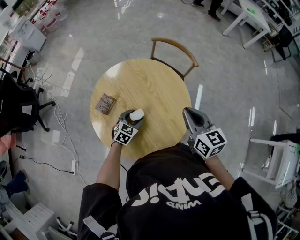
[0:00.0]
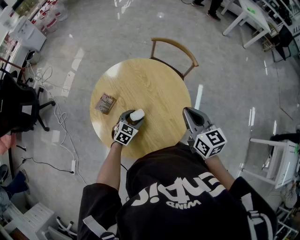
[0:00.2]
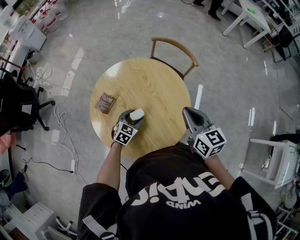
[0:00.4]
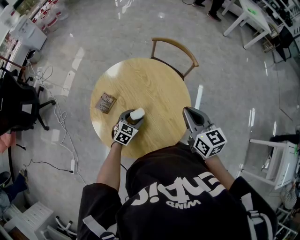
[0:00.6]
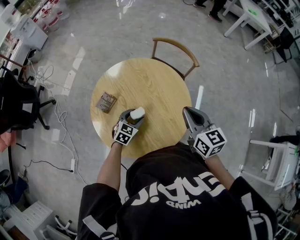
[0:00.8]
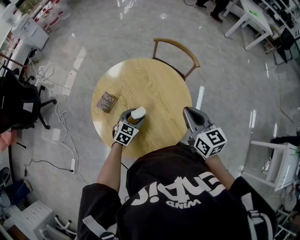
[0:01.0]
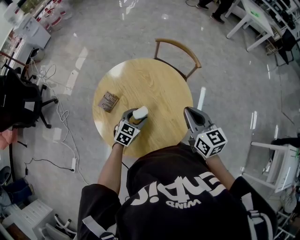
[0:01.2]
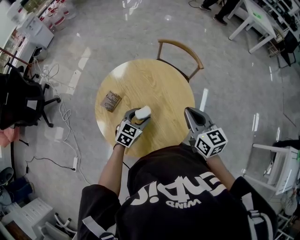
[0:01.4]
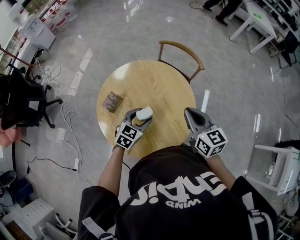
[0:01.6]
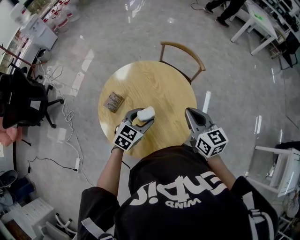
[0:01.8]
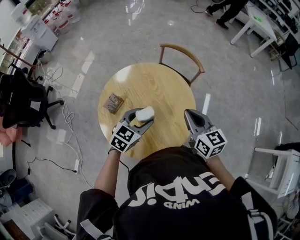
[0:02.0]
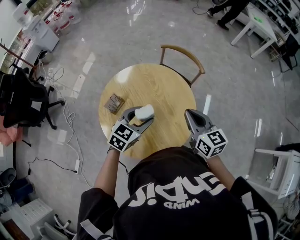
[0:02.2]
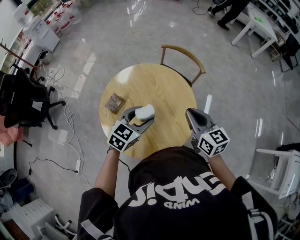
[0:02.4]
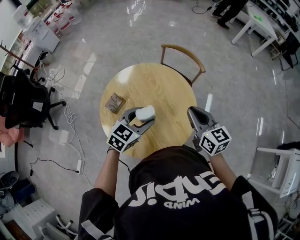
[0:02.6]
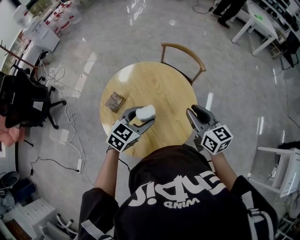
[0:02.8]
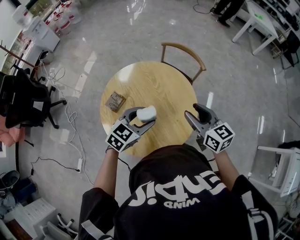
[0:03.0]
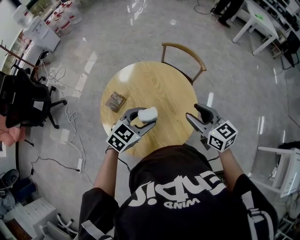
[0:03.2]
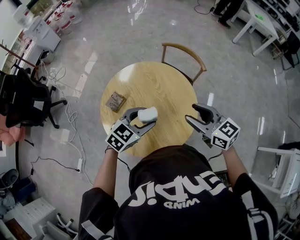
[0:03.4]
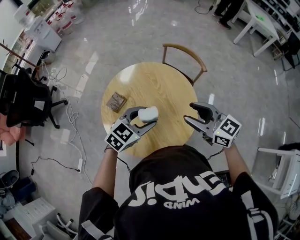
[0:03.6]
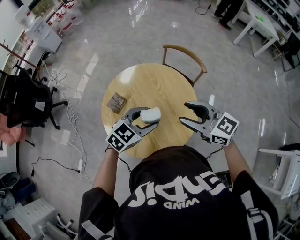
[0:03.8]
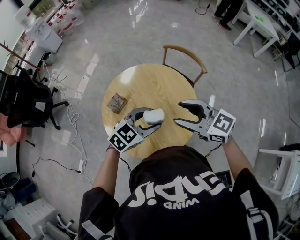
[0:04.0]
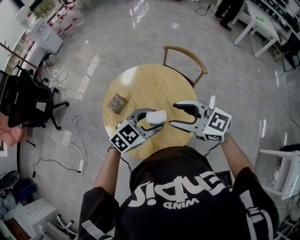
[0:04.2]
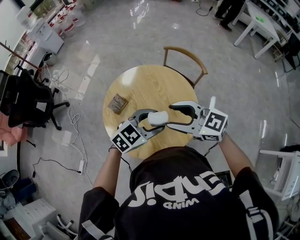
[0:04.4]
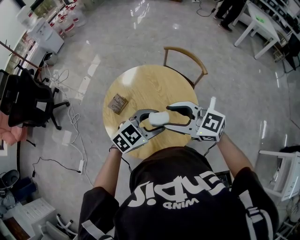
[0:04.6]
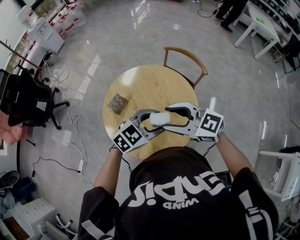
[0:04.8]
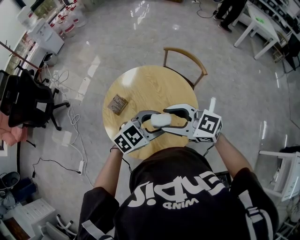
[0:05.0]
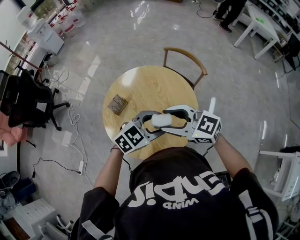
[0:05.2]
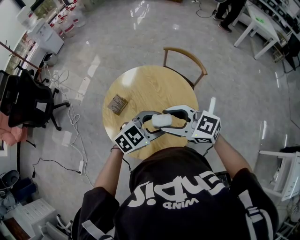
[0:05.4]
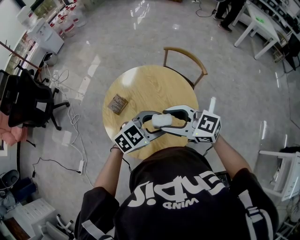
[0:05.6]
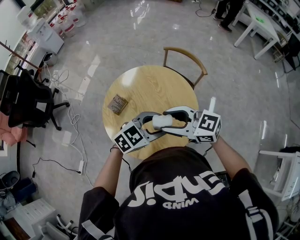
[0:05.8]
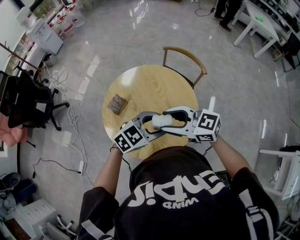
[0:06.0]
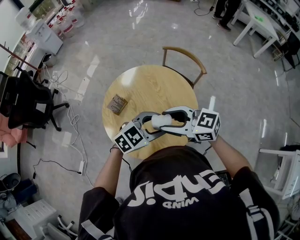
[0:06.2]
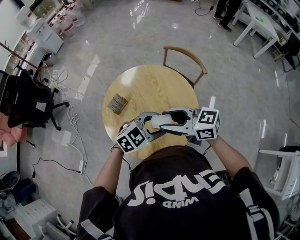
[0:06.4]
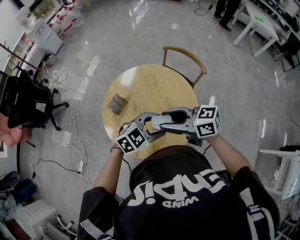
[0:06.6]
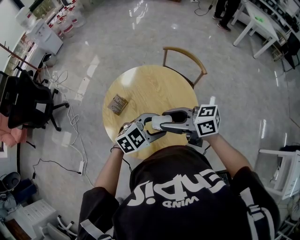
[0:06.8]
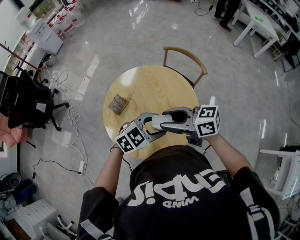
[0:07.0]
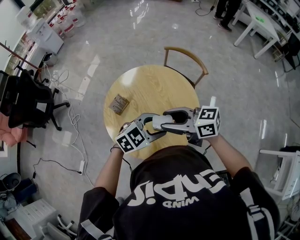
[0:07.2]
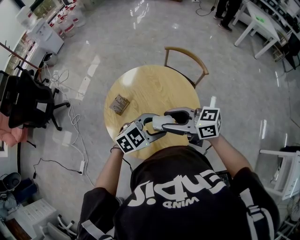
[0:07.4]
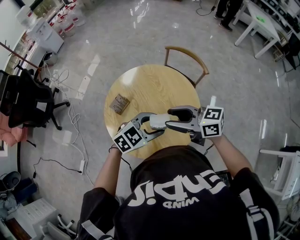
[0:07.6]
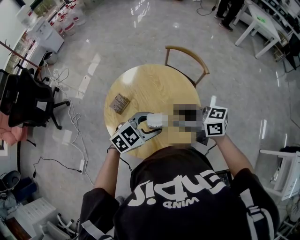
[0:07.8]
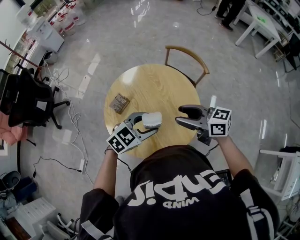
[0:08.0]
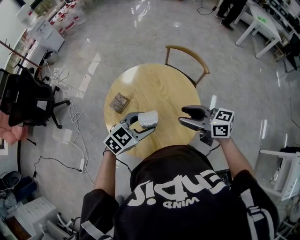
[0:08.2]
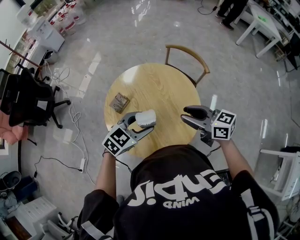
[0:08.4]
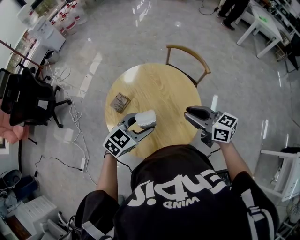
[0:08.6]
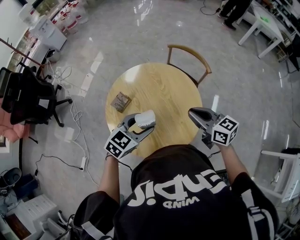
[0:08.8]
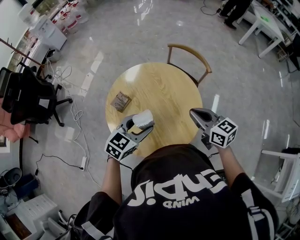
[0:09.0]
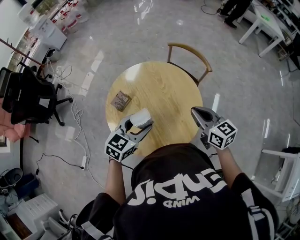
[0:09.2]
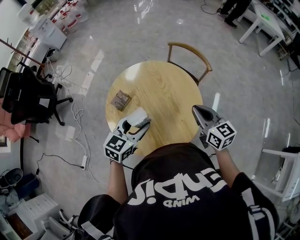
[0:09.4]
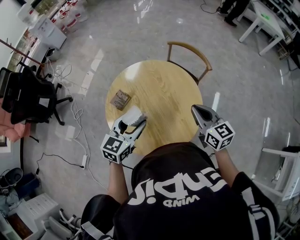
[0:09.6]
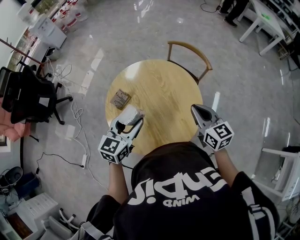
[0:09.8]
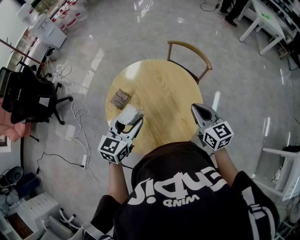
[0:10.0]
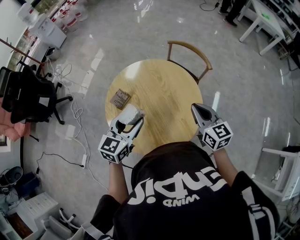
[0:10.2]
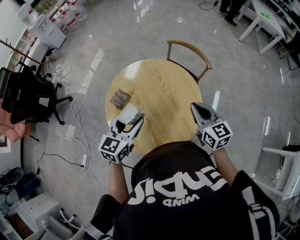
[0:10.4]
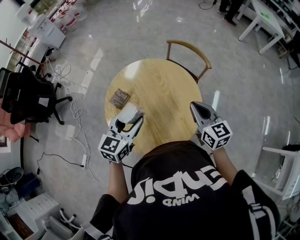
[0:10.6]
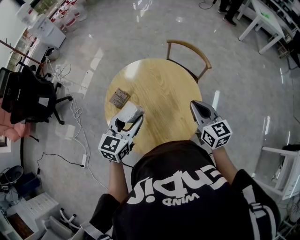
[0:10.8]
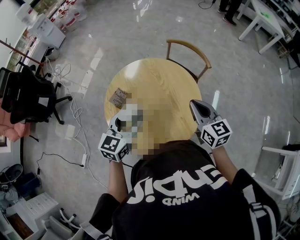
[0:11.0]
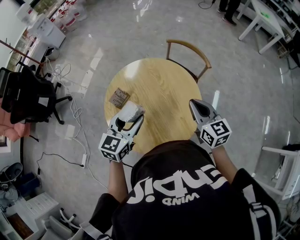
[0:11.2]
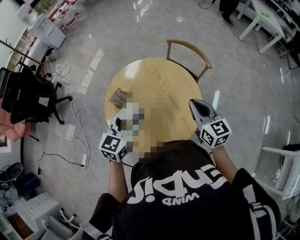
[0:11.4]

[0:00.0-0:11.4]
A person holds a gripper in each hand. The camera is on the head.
0:00.0 to 0:01.4: The left gripper heads upward, covering roughly 10 cm.
0:01.4 to 0:02.8: The left gripper heads upward, covering approximately 15 cm.
0:02.8 to 0:04.2: The left gripper moves about 5 cm, while the right gripper moves some 10 cm, turns by some 40 degrees, and opens.
0:04.2 to 0:05.6: The grippers move only a little.
0:05.6 to 0:07.2: The right gripper rotates roughly 20 degrees.
0:07.2 to 0:08.6: The right gripper shifts by approximately 10 cm, swivels approximately 20 degrees, and closes its fingers. Meanwhile the left gripper changes place by roughly 5 cm.
0:08.6 to 0:10.0: The left gripper is displaced to the left by about 5 cm, and swivels roughly 30 degrees, while the right gripper rotates about 30 degrees, and closes up.
0:10.0 to 0:11.4: The grippers stay close to where they were, moving slightly.

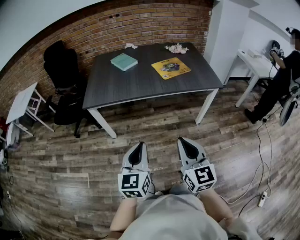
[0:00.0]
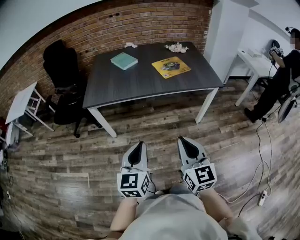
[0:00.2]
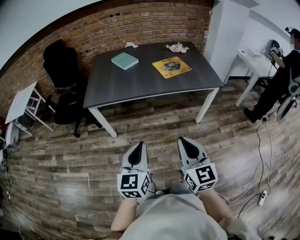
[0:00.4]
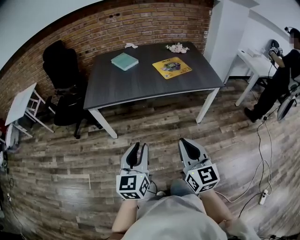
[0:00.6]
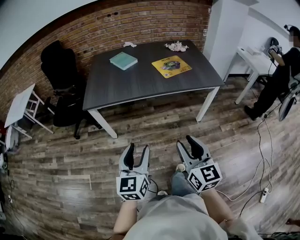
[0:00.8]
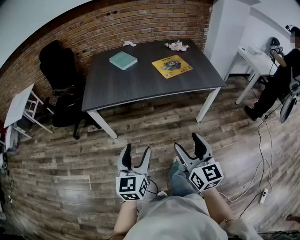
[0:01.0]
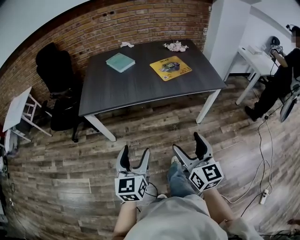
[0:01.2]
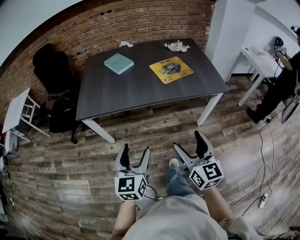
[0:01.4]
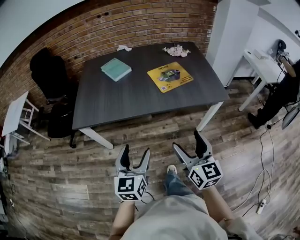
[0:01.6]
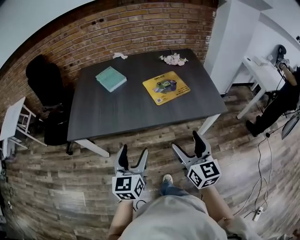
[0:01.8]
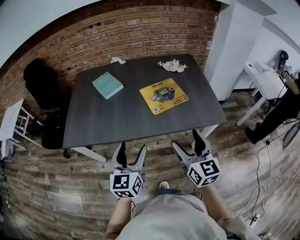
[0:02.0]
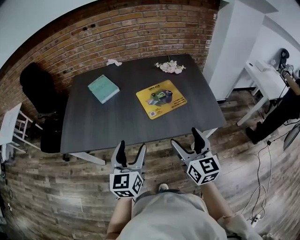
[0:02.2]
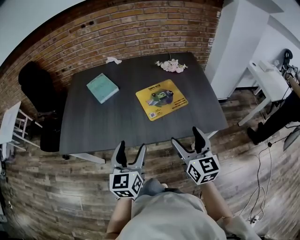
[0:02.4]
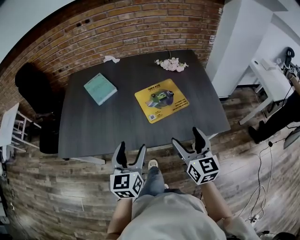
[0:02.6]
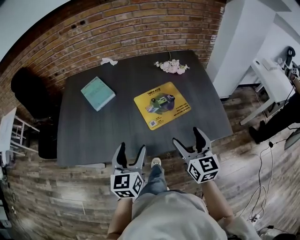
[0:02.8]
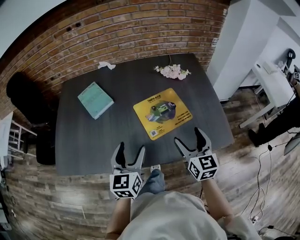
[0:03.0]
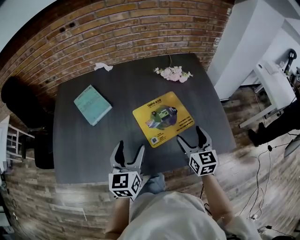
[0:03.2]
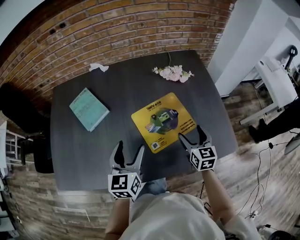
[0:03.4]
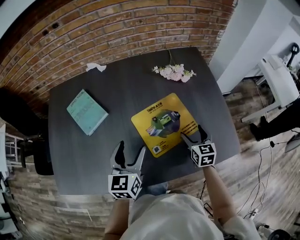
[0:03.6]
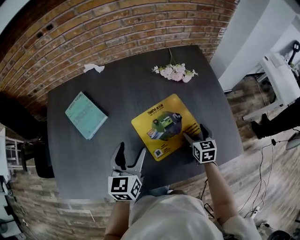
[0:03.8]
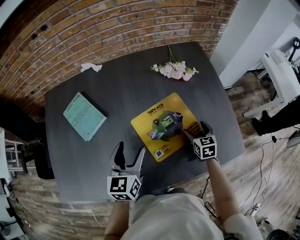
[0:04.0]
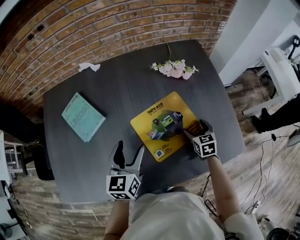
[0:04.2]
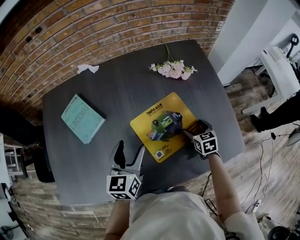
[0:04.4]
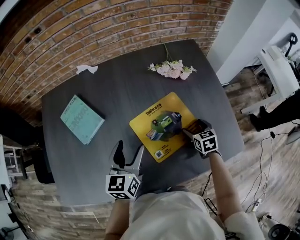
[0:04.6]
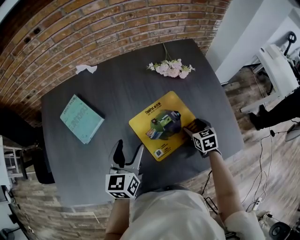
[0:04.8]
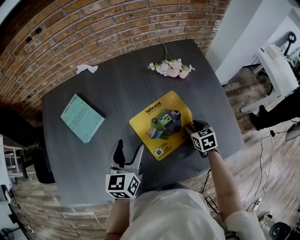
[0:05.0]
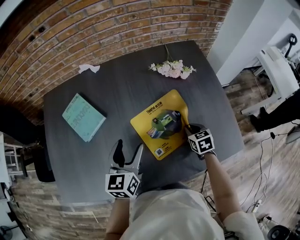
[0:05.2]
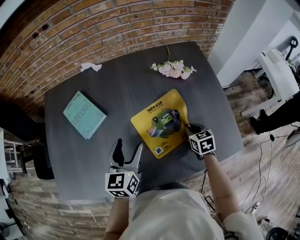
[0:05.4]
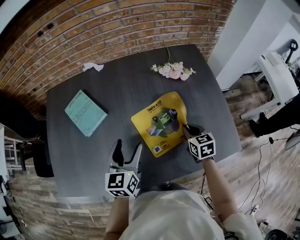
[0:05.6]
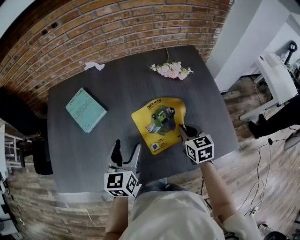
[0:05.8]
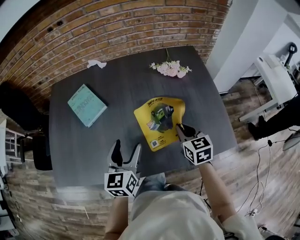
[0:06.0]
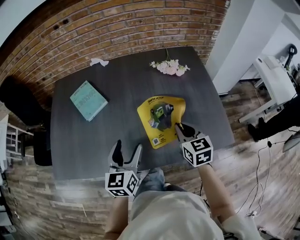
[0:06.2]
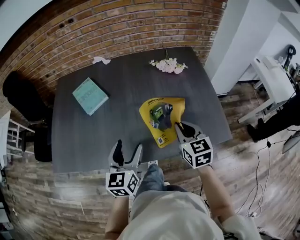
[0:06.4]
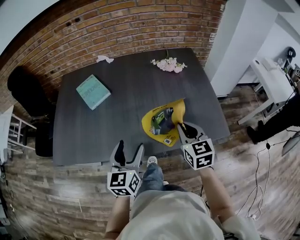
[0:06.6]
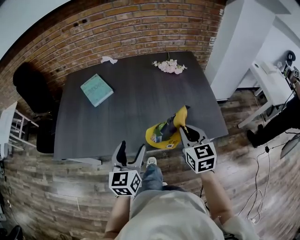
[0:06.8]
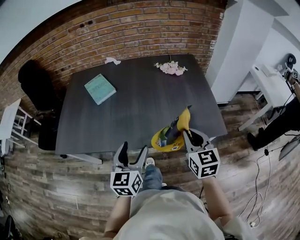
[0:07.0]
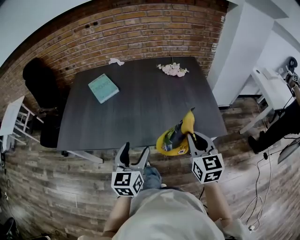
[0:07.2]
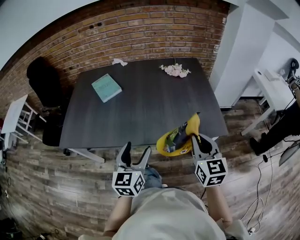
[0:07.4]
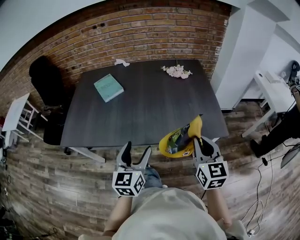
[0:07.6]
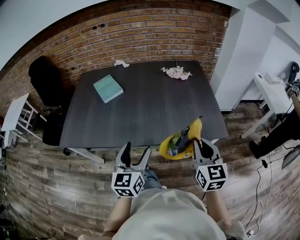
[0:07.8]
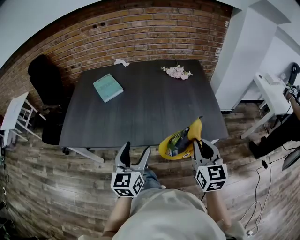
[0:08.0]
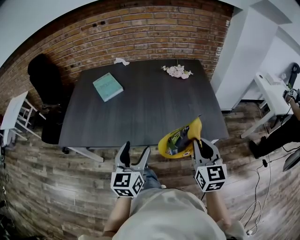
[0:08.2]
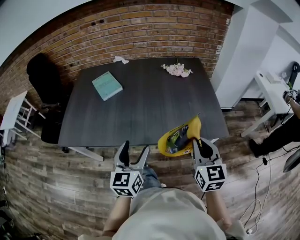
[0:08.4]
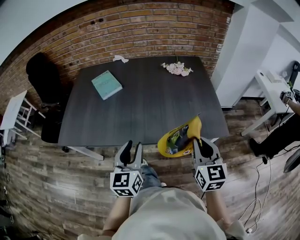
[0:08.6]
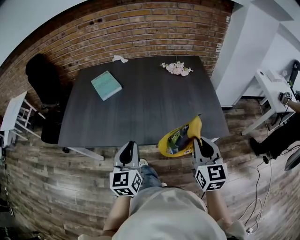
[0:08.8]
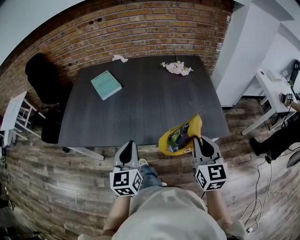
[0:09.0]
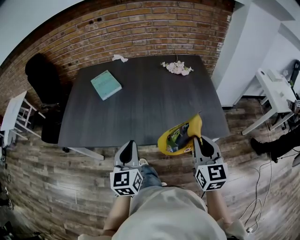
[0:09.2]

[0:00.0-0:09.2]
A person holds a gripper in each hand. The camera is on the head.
0:00.0 to 0:01.6: The two grippers go about 20 cm forward. The right gripper opens, while the left gripper opens its fingers.
0:01.6 to 0:03.0: The grippers both shift forward by roughly 35 cm.
0:03.0 to 0:04.6: The left gripper shifts roughly 15 cm forward; the right gripper shifts some 25 cm downward and forward, and points its fingers about 30 degrees further downward.
0:04.6 to 0:06.2: The left gripper moves backward, about 10 cm; the right gripper goes roughly 20 cm upward, backward and to the left, turns by approximately 20 degrees, and closes.
0:06.2 to 0:07.6: The right gripper travels backward and upward by approximately 25 cm, while the left gripper moves backward, roughly 20 cm.
0:07.6 to 0:09.2: The left gripper closes.

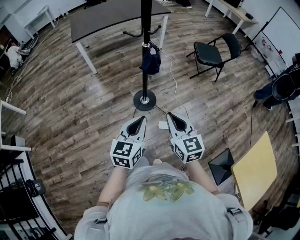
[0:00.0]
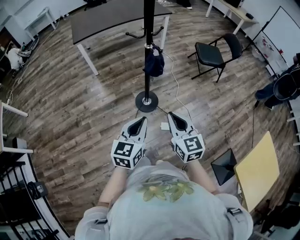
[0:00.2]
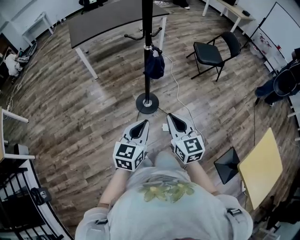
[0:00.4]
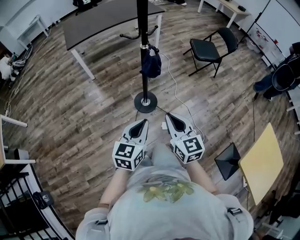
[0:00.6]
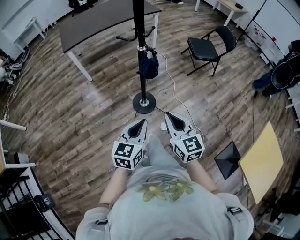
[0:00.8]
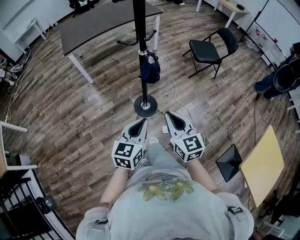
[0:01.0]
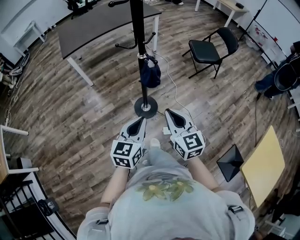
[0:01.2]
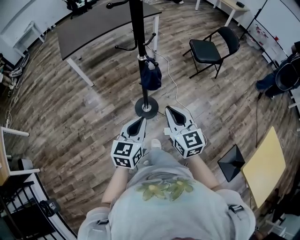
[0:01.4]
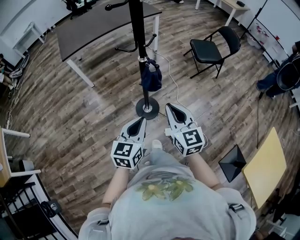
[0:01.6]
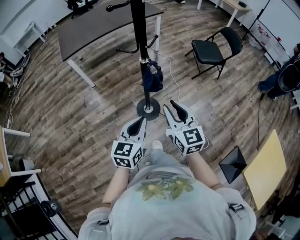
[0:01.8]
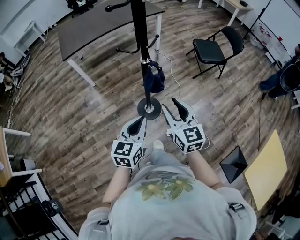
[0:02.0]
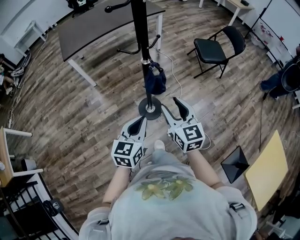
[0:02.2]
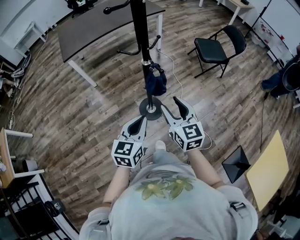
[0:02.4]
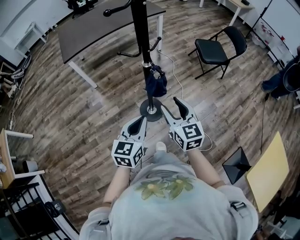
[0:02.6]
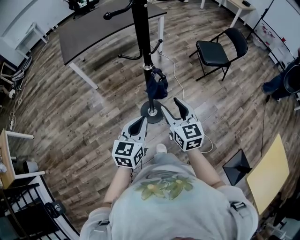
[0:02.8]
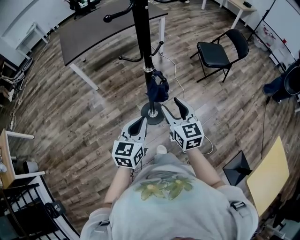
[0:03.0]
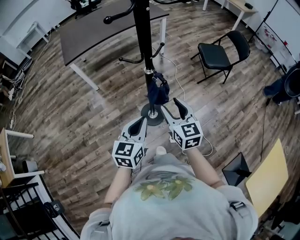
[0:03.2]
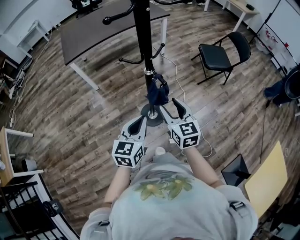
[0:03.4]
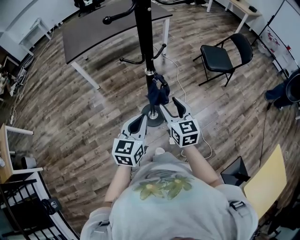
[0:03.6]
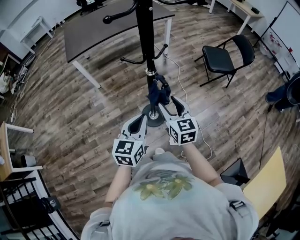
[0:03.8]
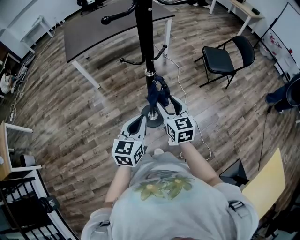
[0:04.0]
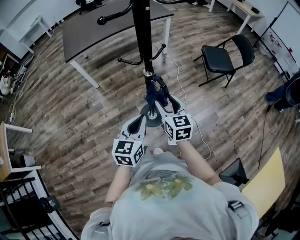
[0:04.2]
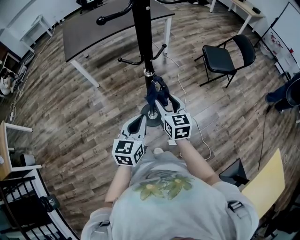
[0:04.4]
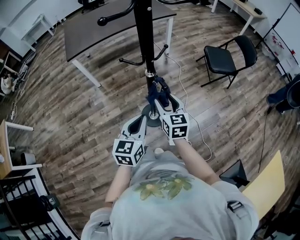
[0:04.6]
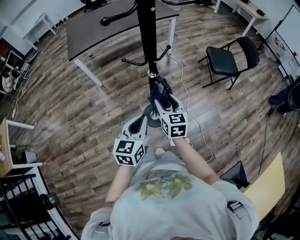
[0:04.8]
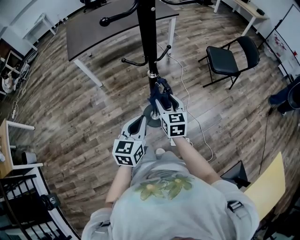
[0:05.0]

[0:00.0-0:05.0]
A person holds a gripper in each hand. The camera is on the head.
0:00.0 to 0:01.6: The grippers both shift forward by approximately 15 cm.
0:01.6 to 0:03.4: The right gripper heads forward and downward, covering about 15 cm, and opens its fingers. The left gripper travels forward by roughly 10 cm.
0:03.4 to 0:05.0: The right gripper goes approximately 10 cm forward and downward.
